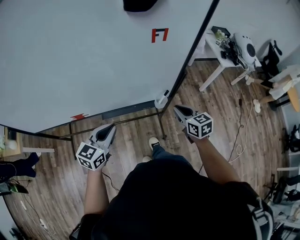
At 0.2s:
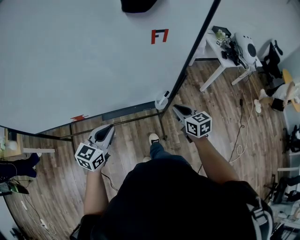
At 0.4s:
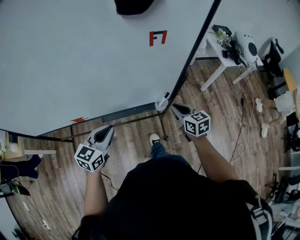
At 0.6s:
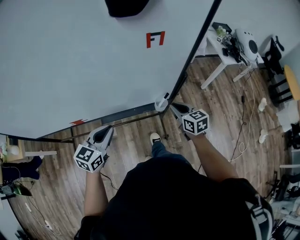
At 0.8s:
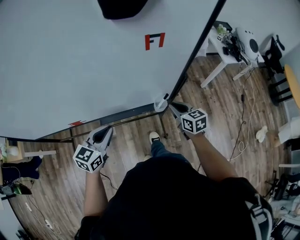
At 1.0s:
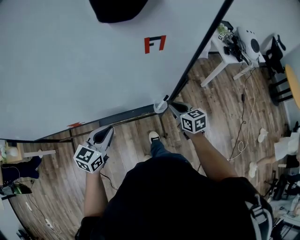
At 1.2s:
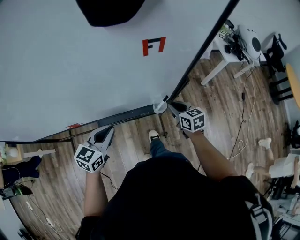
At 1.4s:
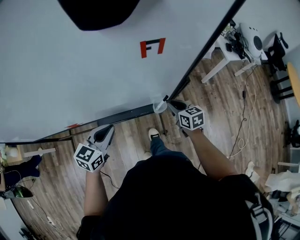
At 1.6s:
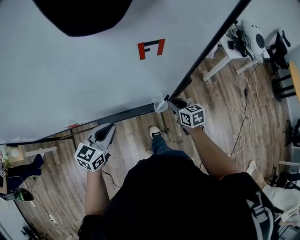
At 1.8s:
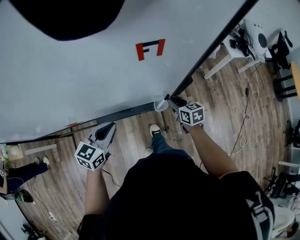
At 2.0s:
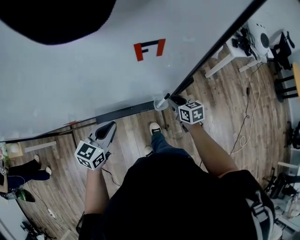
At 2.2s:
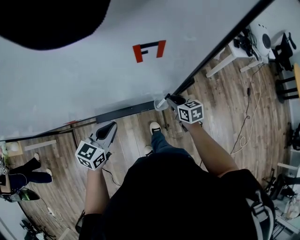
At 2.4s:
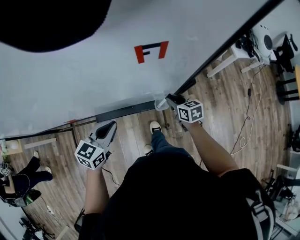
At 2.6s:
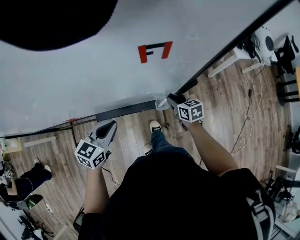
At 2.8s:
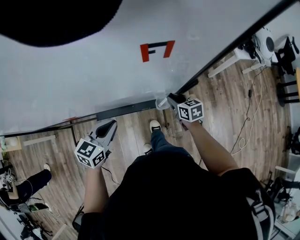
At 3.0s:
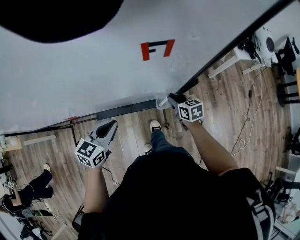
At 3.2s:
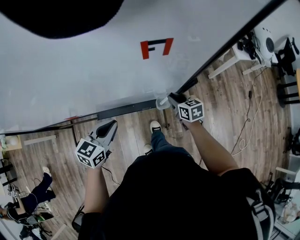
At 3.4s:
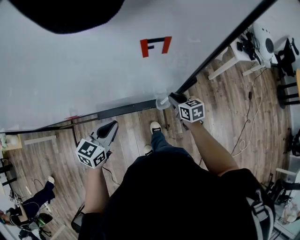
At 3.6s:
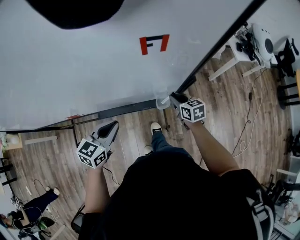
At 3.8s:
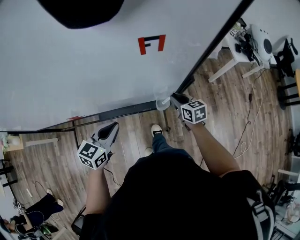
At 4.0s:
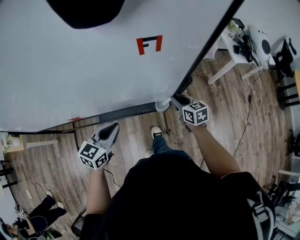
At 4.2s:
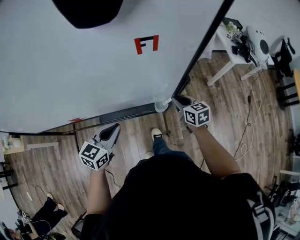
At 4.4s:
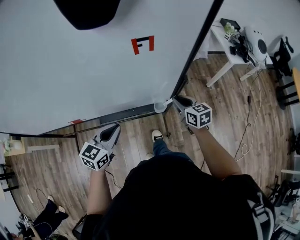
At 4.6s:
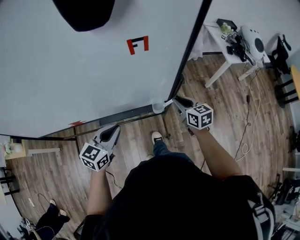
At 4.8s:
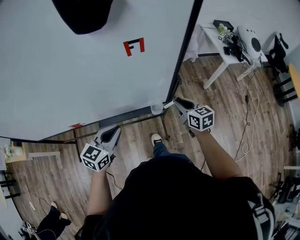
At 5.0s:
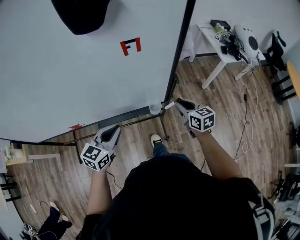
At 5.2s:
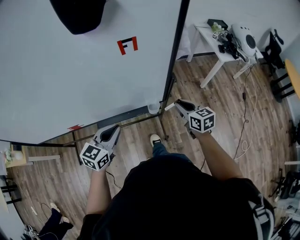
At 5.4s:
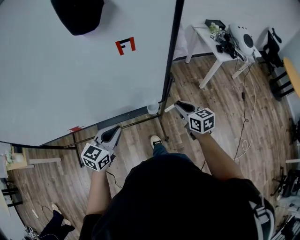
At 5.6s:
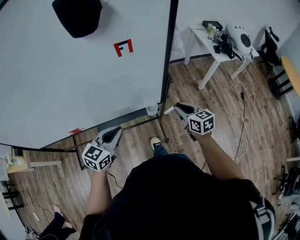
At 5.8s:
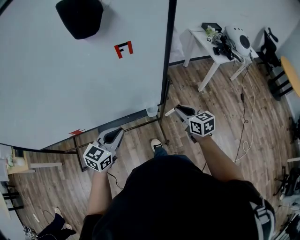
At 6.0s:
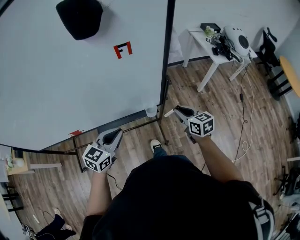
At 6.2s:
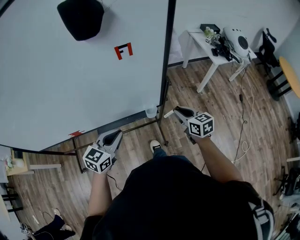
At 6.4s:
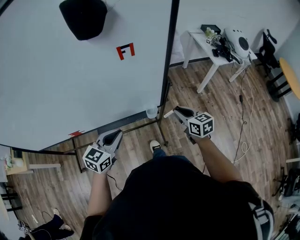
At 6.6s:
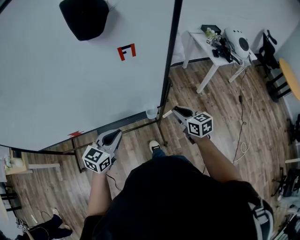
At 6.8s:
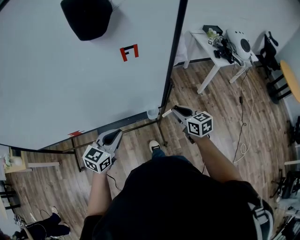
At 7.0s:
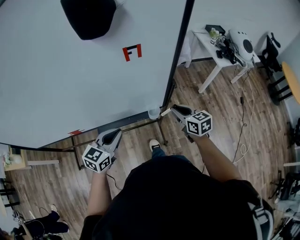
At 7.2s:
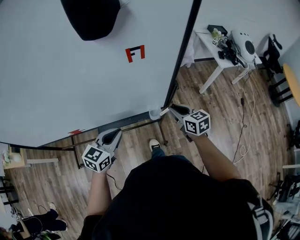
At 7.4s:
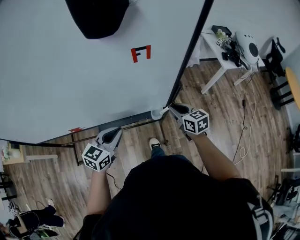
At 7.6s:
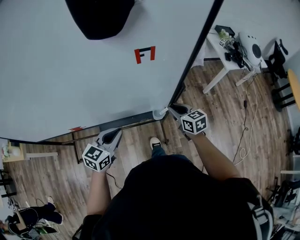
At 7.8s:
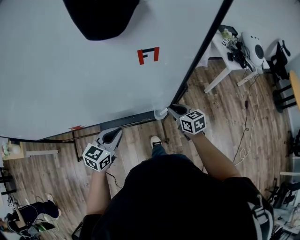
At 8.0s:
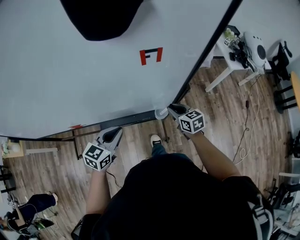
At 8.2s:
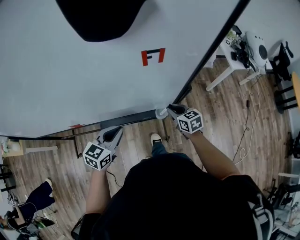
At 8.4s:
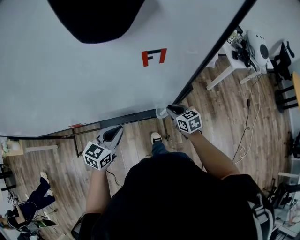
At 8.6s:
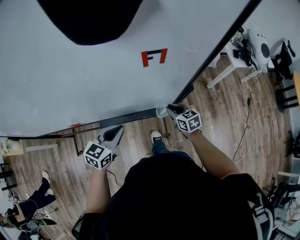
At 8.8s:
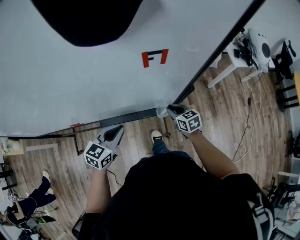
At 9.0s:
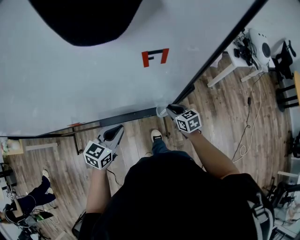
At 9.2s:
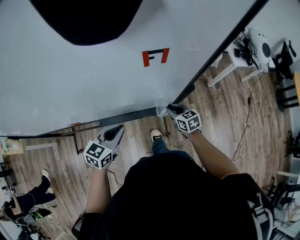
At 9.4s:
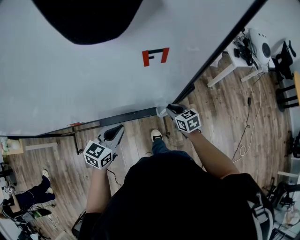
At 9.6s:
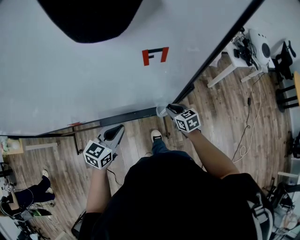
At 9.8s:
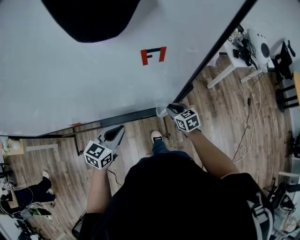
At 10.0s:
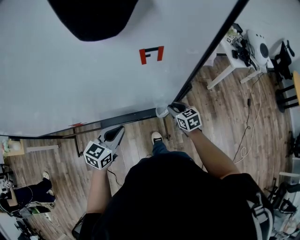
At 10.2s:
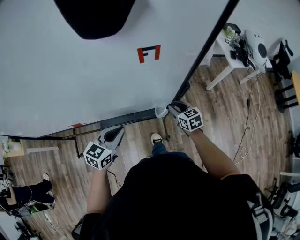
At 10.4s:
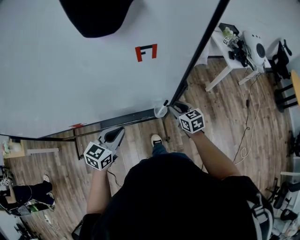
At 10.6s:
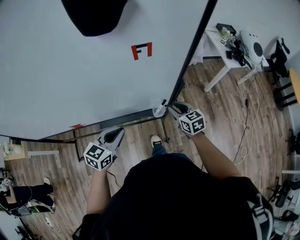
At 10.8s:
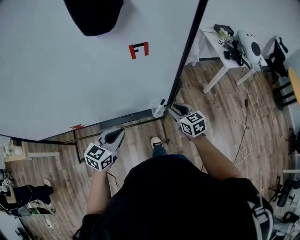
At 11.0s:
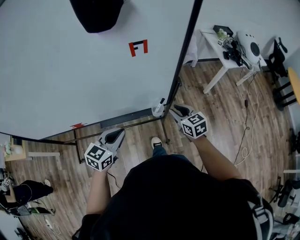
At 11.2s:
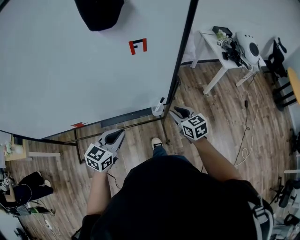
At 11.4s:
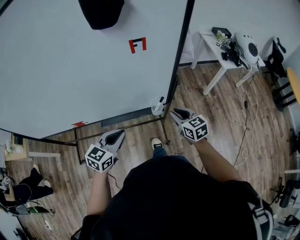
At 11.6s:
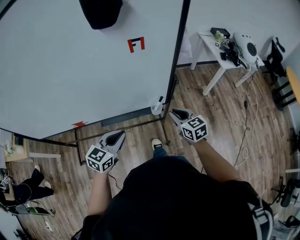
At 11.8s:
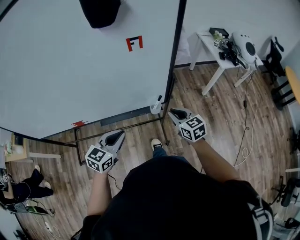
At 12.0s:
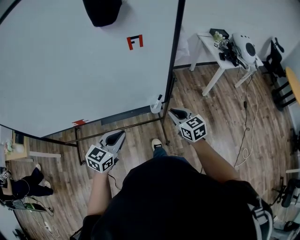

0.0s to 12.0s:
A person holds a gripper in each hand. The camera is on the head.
0.0s to 1.6s: The right gripper shifts roughly 15 cm forward and downward. Meanwhile the left gripper travels forward by approximately 10 cm.
1.6s to 3.0s: The grippers make only small movements.
3.0s to 4.4s: The right gripper is displaced upward by approximately 10 cm; the left gripper moves roughly 5 cm.
4.4s to 6.0s: The left gripper shifts by roughly 5 cm, while the right gripper shifts about 10 cm backward and to the right.
6.0s to 7.6s: The left gripper moves approximately 5 cm. The right gripper goes approximately 10 cm to the left and forward.
7.6s to 9.0s: The right gripper moves downward, roughly 10 cm.
9.0s to 10.4s: The right gripper shifts approximately 5 cm upward.
10.4s to 12.0s: The left gripper is displaced backward by about 10 cm; the right gripper shifts some 15 cm backward and upward.

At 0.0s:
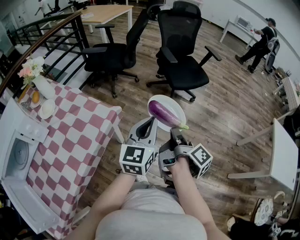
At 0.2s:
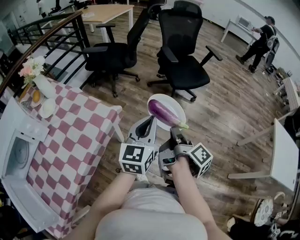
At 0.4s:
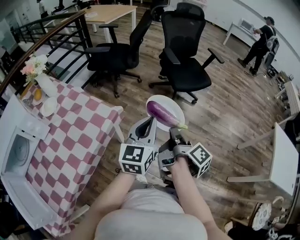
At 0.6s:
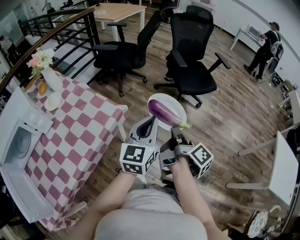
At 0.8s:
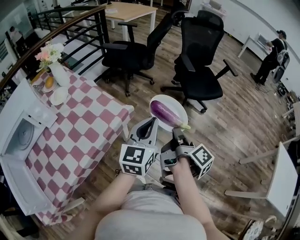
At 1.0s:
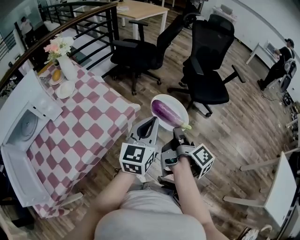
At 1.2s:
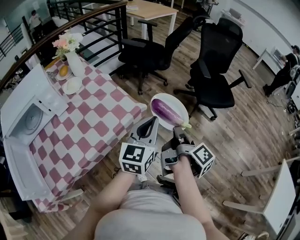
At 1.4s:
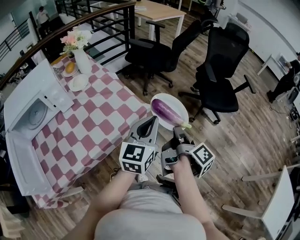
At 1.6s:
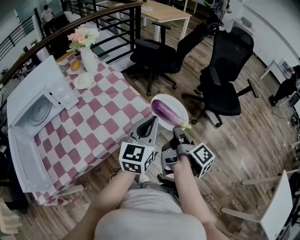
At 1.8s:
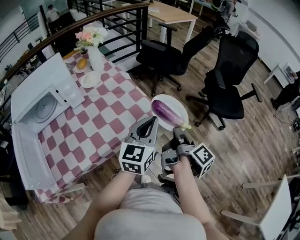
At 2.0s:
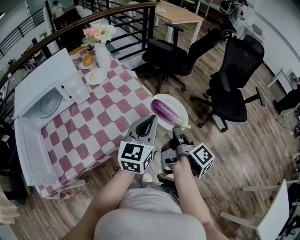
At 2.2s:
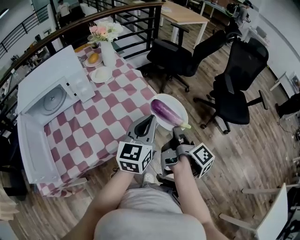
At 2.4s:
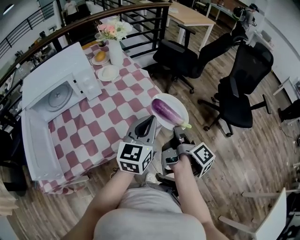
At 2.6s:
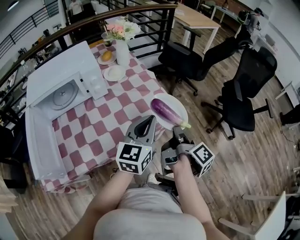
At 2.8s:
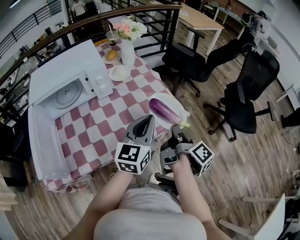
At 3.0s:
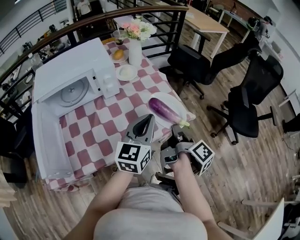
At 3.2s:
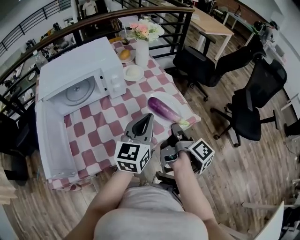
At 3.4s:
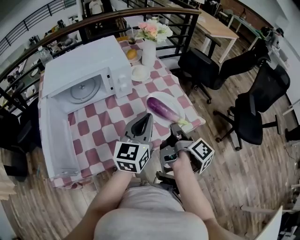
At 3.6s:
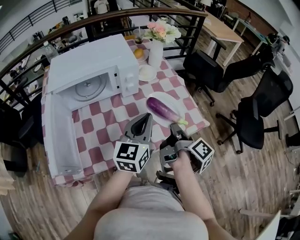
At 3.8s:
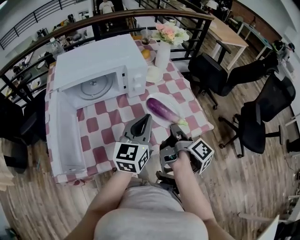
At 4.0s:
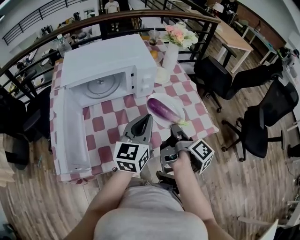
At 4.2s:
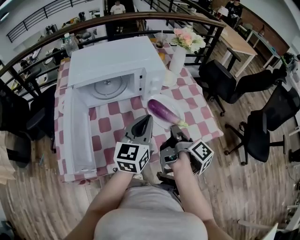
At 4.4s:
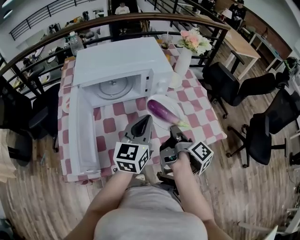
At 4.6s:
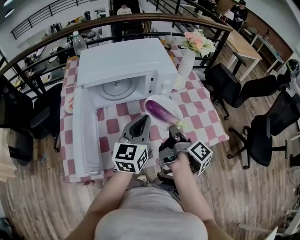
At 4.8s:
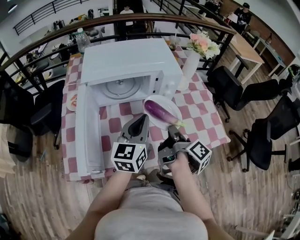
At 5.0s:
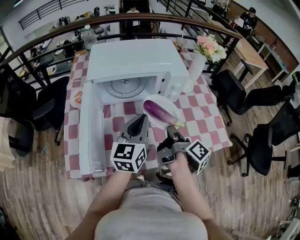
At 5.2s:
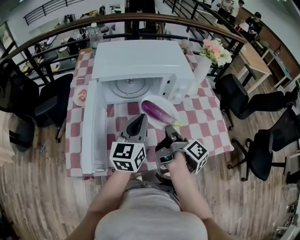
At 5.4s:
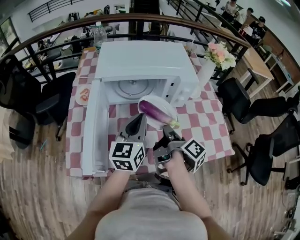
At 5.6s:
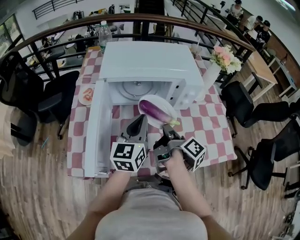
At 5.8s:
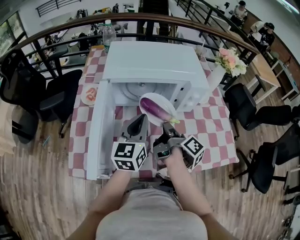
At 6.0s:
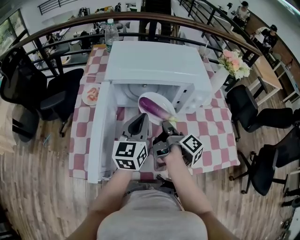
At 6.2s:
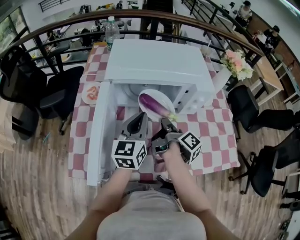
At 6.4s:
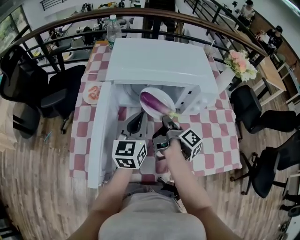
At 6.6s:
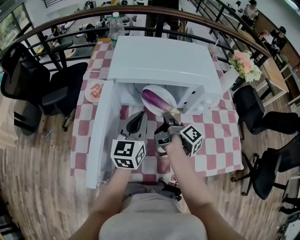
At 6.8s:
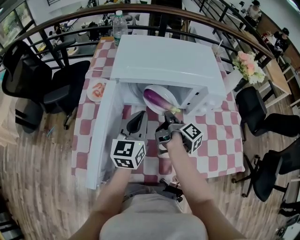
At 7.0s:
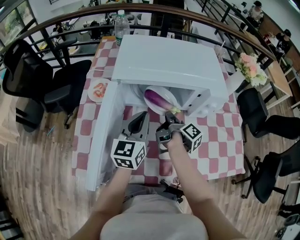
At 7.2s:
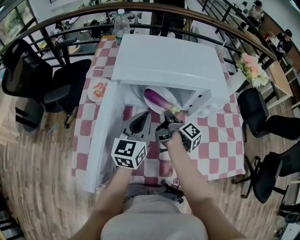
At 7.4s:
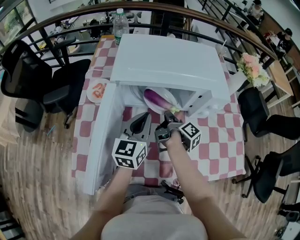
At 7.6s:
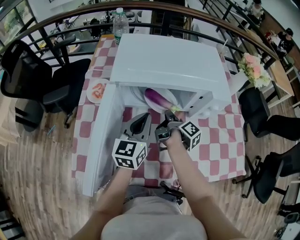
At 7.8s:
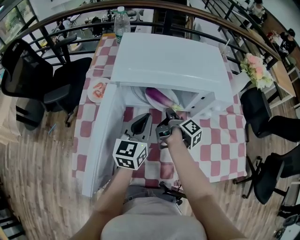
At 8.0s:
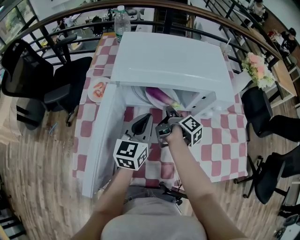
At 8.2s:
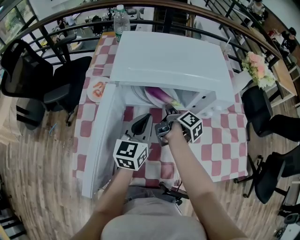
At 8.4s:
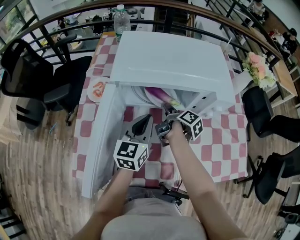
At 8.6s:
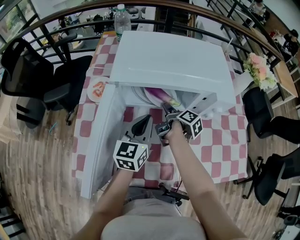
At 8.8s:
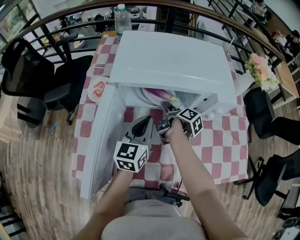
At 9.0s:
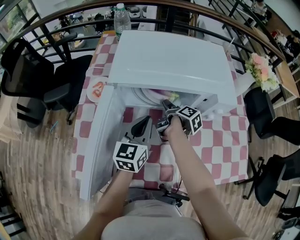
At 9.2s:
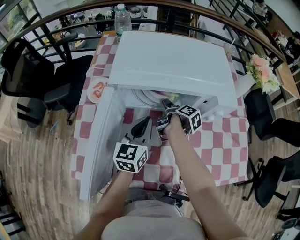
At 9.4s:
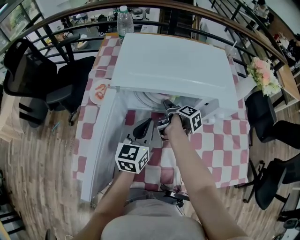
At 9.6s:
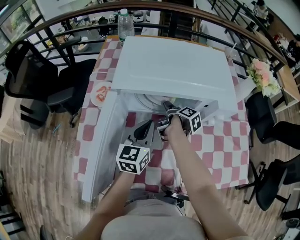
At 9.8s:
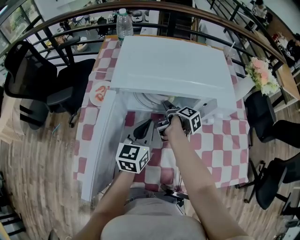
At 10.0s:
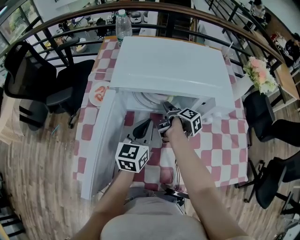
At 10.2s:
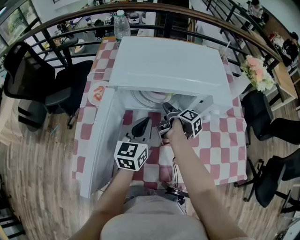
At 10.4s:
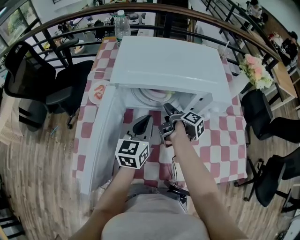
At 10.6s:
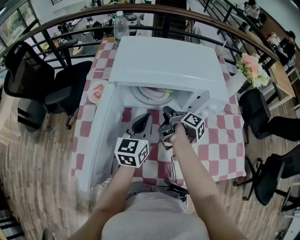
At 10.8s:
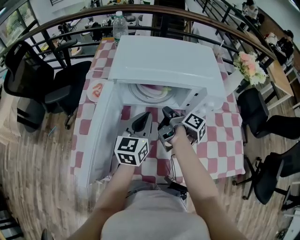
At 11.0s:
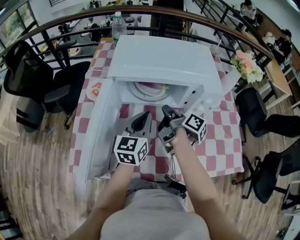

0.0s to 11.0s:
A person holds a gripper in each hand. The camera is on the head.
0.0s to 1.6s: The left gripper moves roughly 15 cm, and swivels some 20 degrees.
1.6s to 3.2s: The left gripper shifts by roughly 25 cm.
3.2s to 4.8s: The left gripper ends up approximately 25 cm from where it was.
4.8s to 6.2s: The left gripper shifts by roughly 10 cm.
6.2s to 7.8s: The left gripper moves some 5 cm.

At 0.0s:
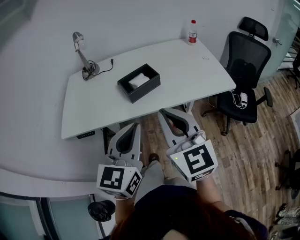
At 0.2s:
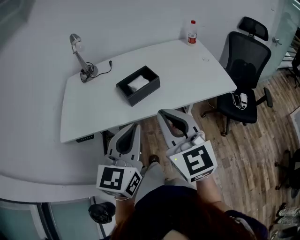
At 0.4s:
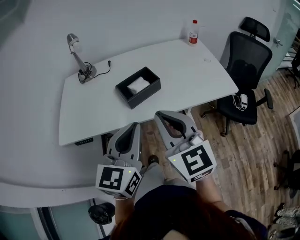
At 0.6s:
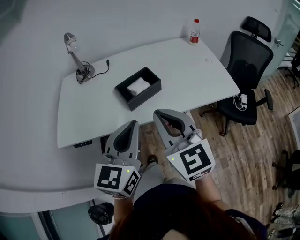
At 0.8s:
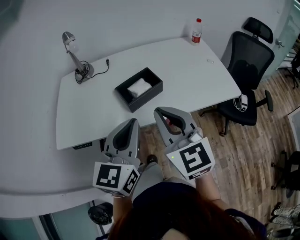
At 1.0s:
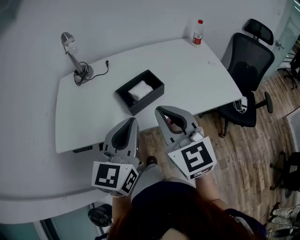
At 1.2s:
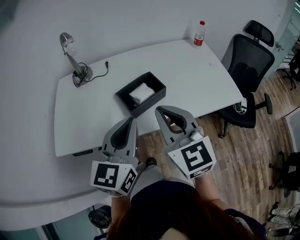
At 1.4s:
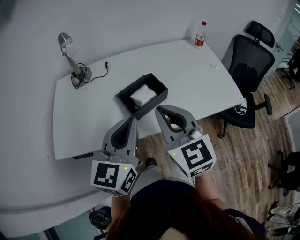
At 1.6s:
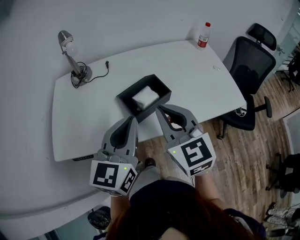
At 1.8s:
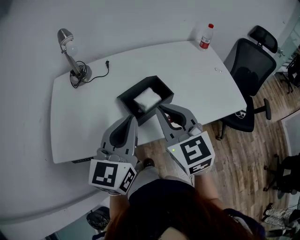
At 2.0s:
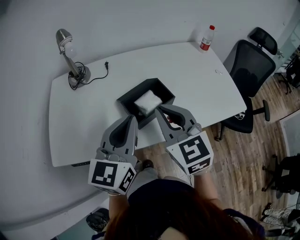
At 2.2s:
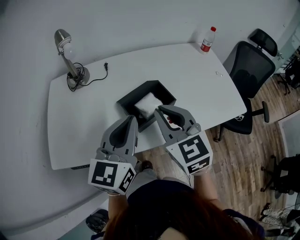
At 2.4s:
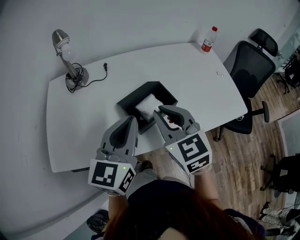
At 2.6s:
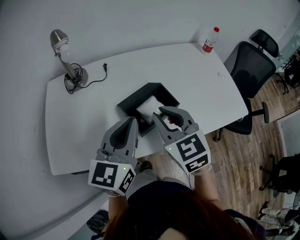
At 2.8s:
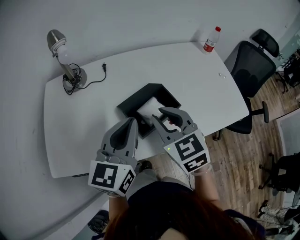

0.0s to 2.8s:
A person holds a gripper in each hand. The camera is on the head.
0.0s to 1.4s: Both grippers travel together forward, approximately 15 cm.
1.4s to 2.8s: The right gripper moves forward and downward, roughly 15 cm. The left gripper goes some 10 cm forward.
